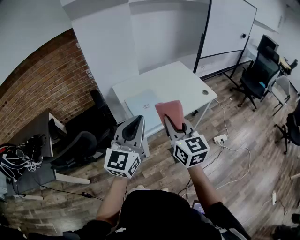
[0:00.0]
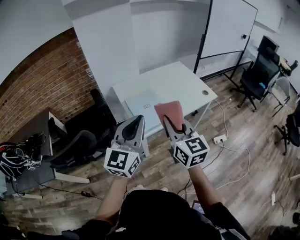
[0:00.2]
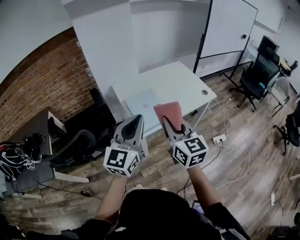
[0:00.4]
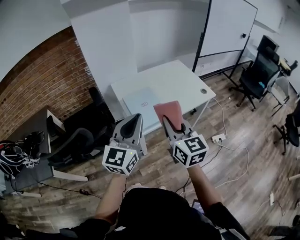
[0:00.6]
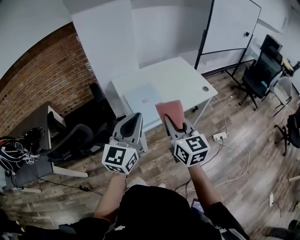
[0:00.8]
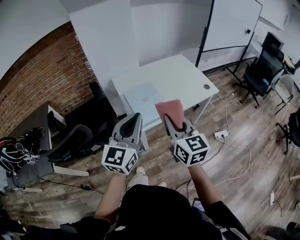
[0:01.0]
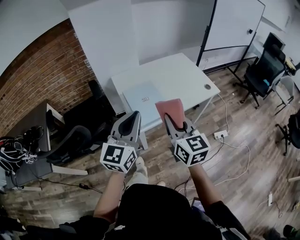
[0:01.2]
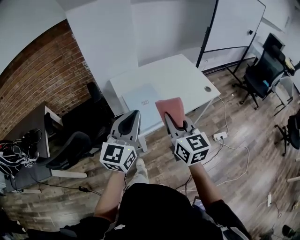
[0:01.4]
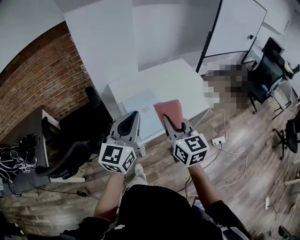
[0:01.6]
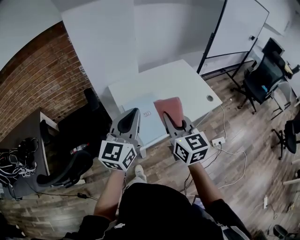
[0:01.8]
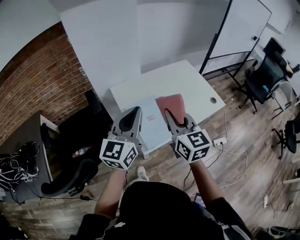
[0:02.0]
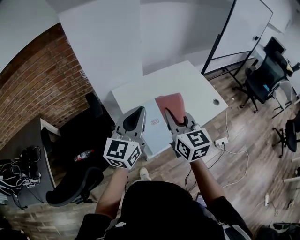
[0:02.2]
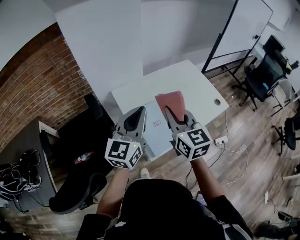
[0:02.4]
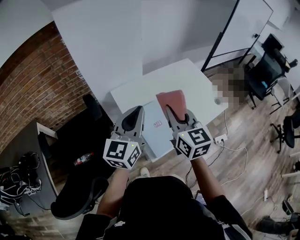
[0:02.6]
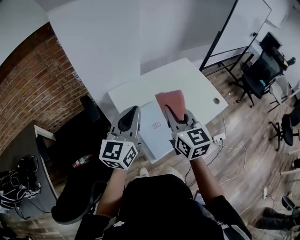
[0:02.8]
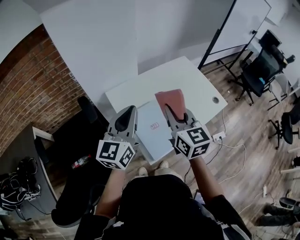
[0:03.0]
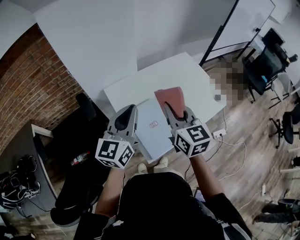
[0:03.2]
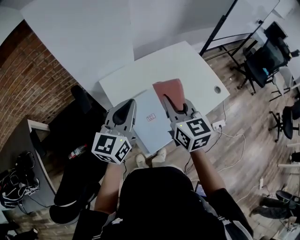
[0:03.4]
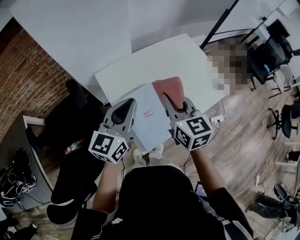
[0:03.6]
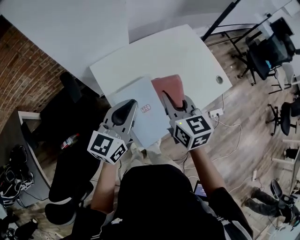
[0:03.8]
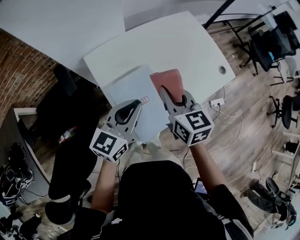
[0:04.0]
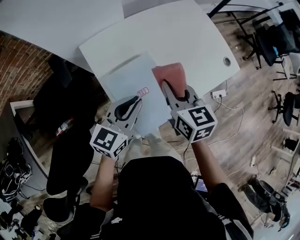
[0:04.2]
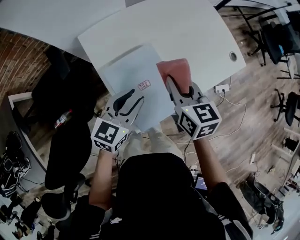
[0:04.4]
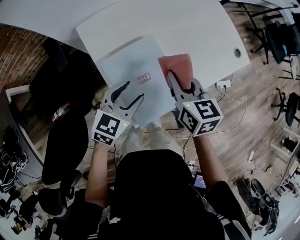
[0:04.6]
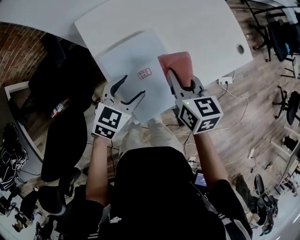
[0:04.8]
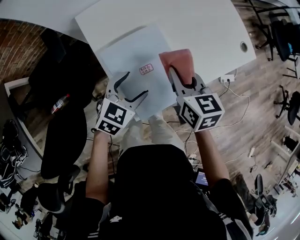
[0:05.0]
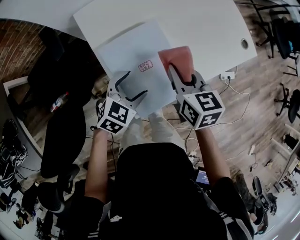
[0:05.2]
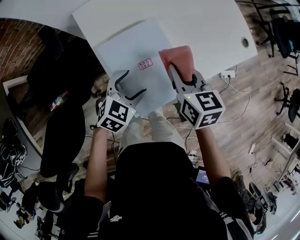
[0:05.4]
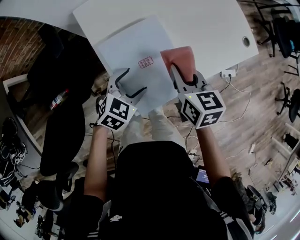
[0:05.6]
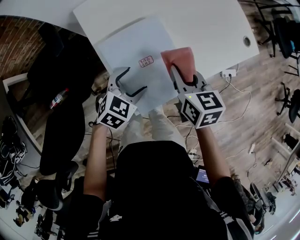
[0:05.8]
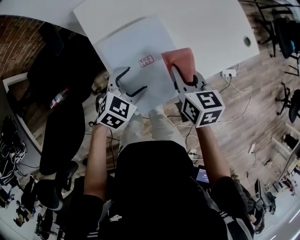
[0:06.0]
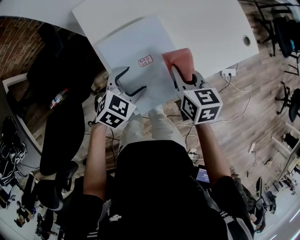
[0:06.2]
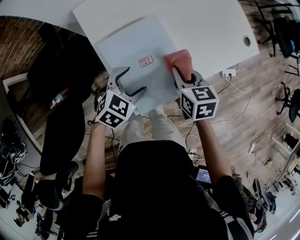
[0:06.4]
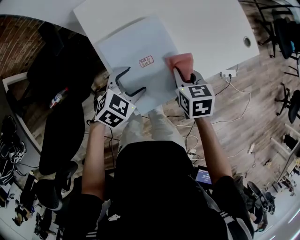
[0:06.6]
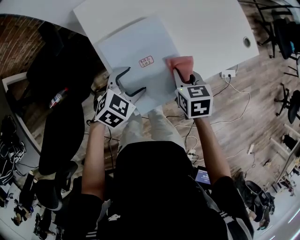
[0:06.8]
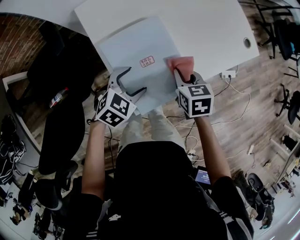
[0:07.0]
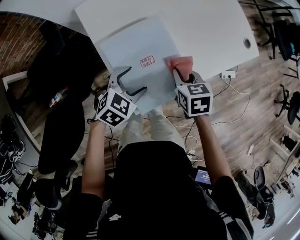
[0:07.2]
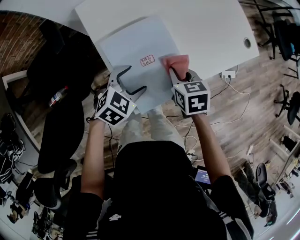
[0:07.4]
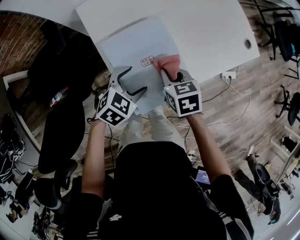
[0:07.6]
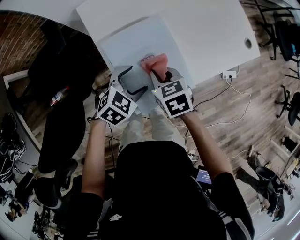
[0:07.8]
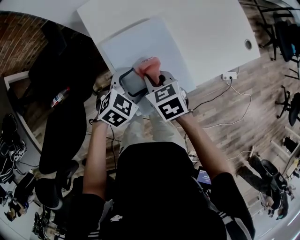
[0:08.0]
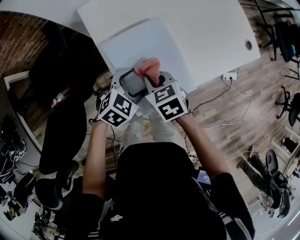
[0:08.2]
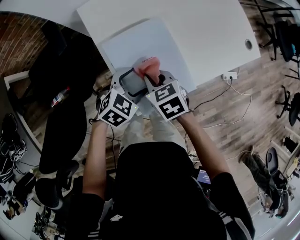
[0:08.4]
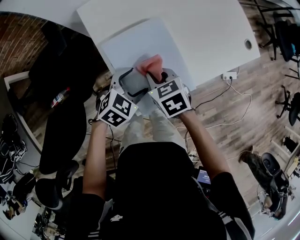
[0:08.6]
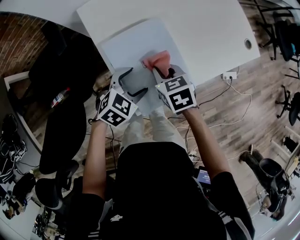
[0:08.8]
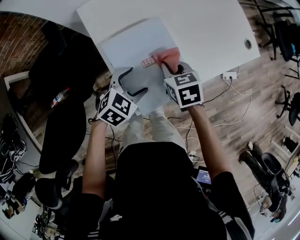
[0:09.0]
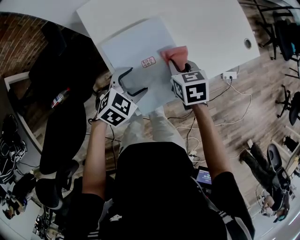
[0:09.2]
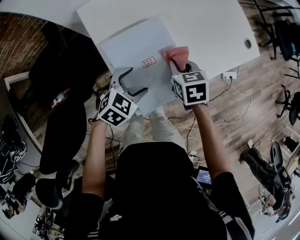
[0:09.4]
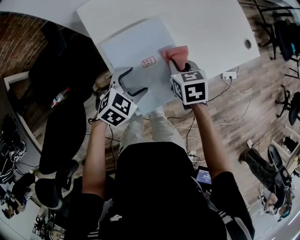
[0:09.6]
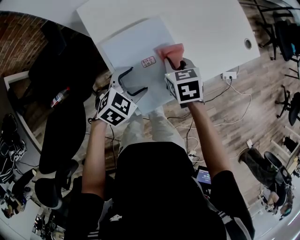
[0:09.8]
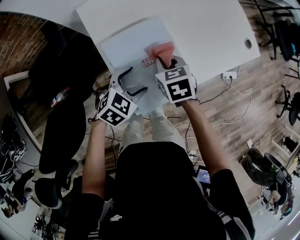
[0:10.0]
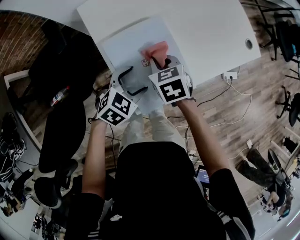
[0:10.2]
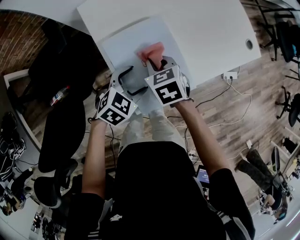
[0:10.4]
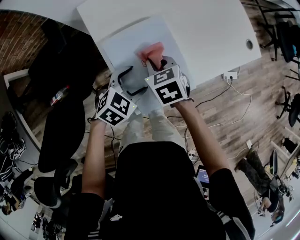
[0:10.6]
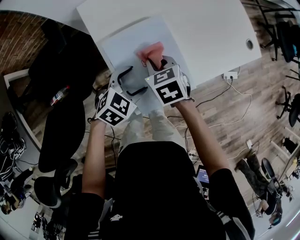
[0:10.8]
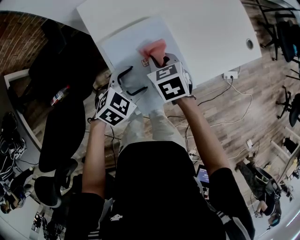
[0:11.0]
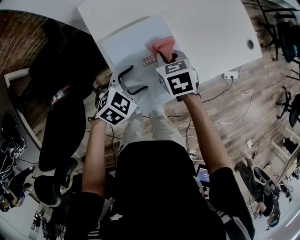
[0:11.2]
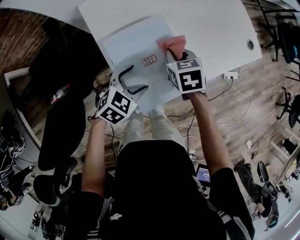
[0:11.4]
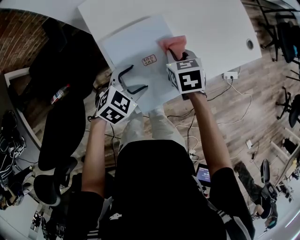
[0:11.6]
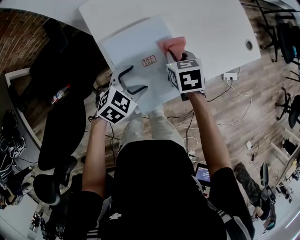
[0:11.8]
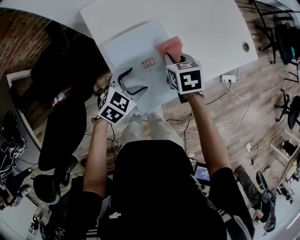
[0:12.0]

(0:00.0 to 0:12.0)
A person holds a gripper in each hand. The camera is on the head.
0:00.0 - 0:01.6: The grippers both shift forward by about 10 cm.
0:01.6 - 0:03.0: The right gripper goes about 20 cm forward; the left gripper moves forward and to the left, roughly 25 cm.
0:03.0 - 0:04.4: The two grippers go about 25 cm downward. The right gripper turns by approximately 20 degrees, while the left gripper turns by approximately 30 degrees, and opens its fingers.
0:04.4 - 0:06.0: The two grippers go approximately 10 cm downward. The left gripper changes its angle by roughly 30 degrees, and opens.
0:06.0 - 0:07.6: The right gripper shifts roughly 5 cm downward.
0:09.0 - 0:10.4: The right gripper goes about 5 cm to the left.
0:10.4 - 0:12.0: The right gripper heads to the right, covering about 5 cm.

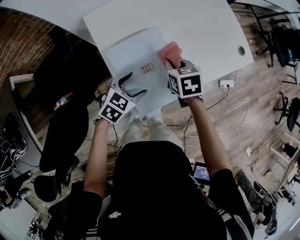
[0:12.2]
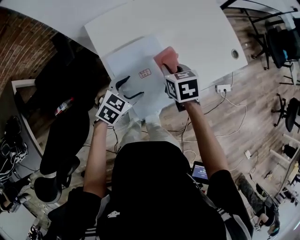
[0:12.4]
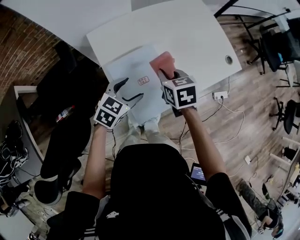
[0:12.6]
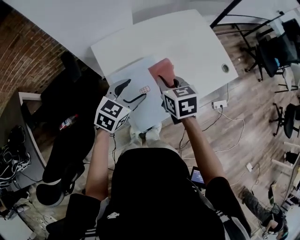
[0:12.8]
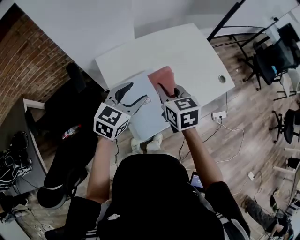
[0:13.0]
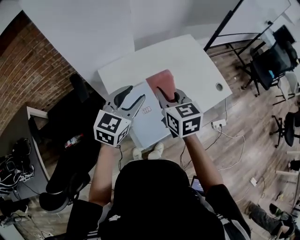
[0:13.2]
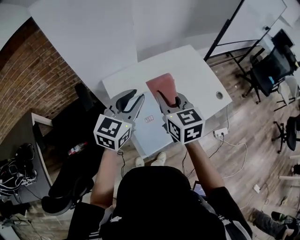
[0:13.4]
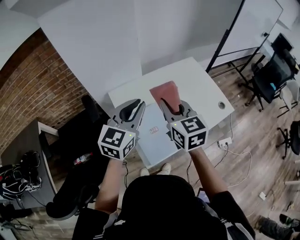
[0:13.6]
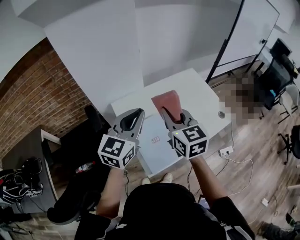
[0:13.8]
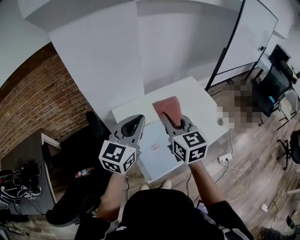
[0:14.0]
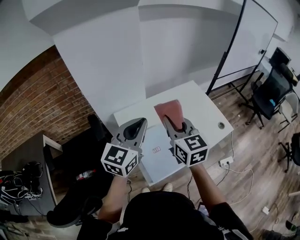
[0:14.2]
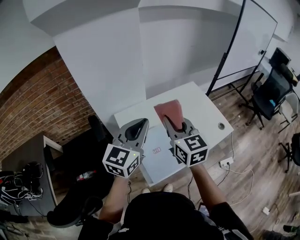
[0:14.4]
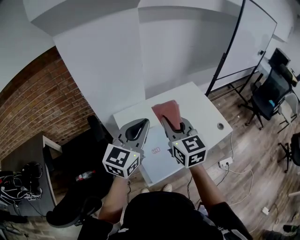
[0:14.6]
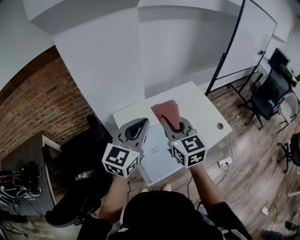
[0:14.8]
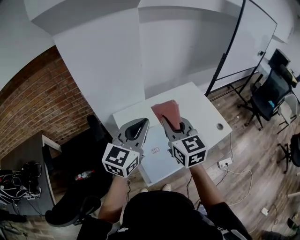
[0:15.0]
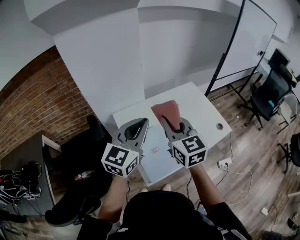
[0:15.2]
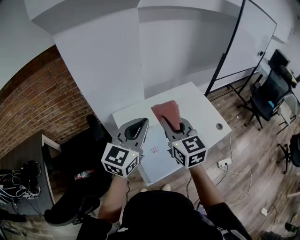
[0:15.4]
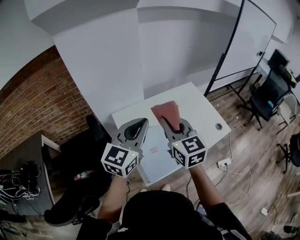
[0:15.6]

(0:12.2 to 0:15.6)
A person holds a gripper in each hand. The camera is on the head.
0:12.2 - 0:13.8: Both grippers move upward, some 35 cm. The right gripper tilts its fingers approximately 40 degrees upward; the left gripper tips its fingers upward by about 40 degrees, and closes up.
0:13.8 - 0:15.6: There are only small adjustments of the grippers.

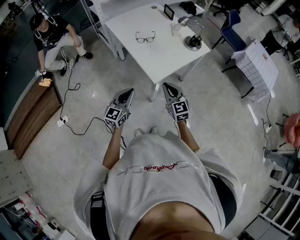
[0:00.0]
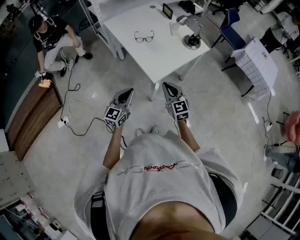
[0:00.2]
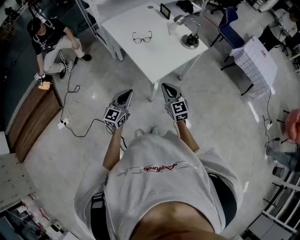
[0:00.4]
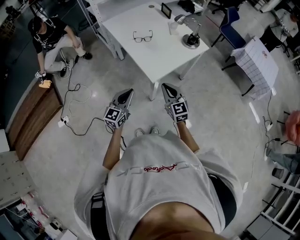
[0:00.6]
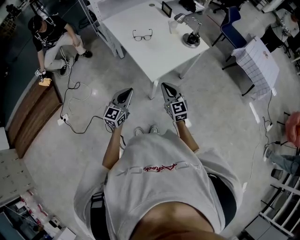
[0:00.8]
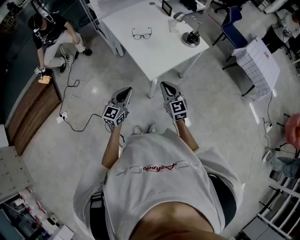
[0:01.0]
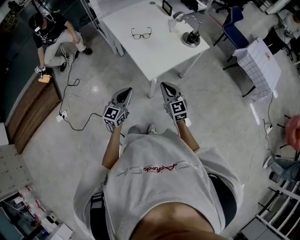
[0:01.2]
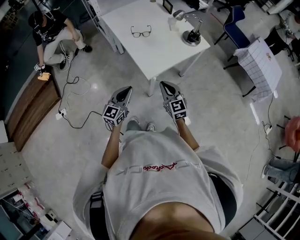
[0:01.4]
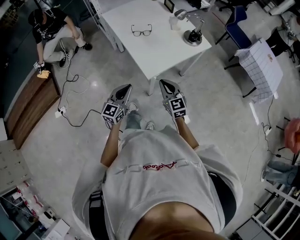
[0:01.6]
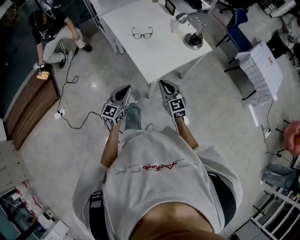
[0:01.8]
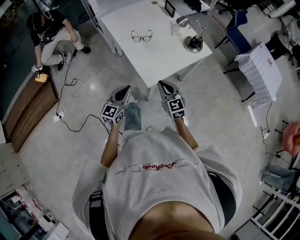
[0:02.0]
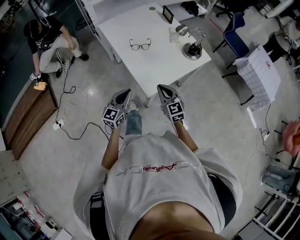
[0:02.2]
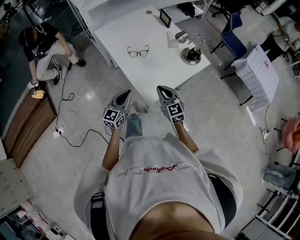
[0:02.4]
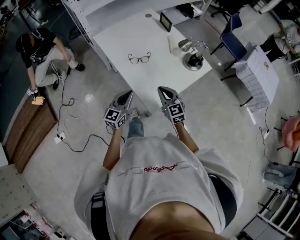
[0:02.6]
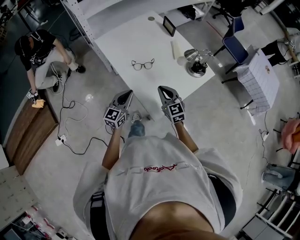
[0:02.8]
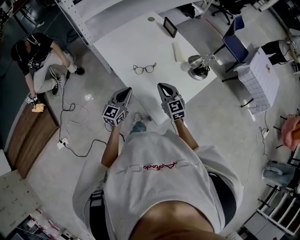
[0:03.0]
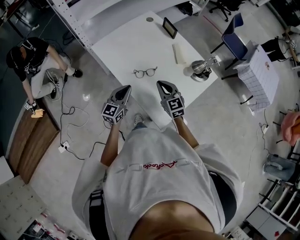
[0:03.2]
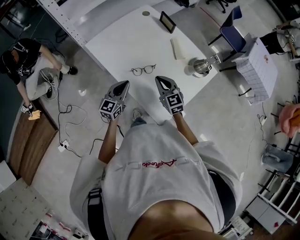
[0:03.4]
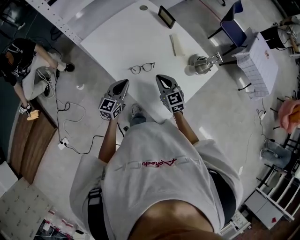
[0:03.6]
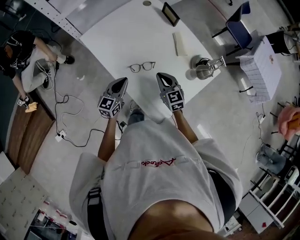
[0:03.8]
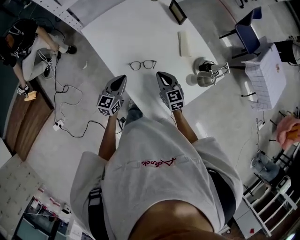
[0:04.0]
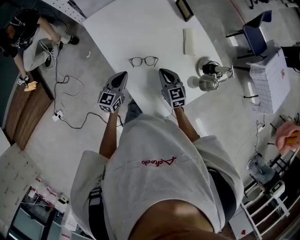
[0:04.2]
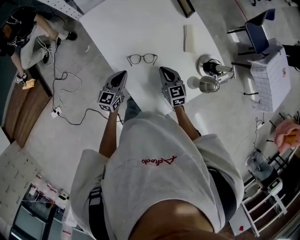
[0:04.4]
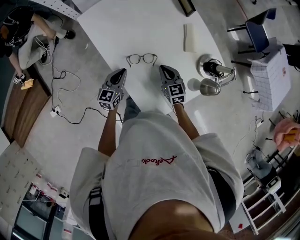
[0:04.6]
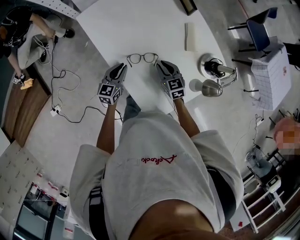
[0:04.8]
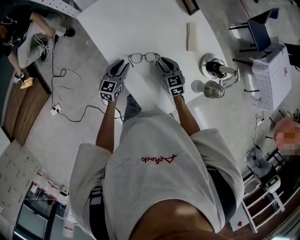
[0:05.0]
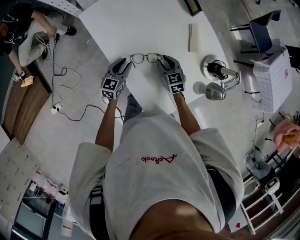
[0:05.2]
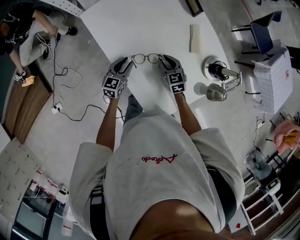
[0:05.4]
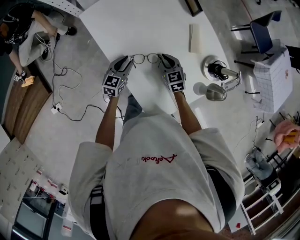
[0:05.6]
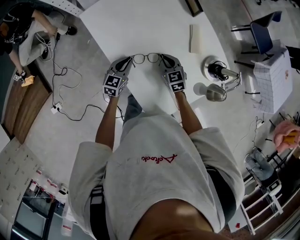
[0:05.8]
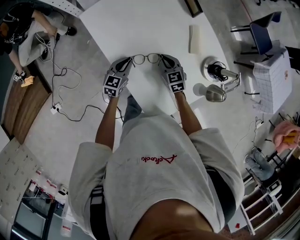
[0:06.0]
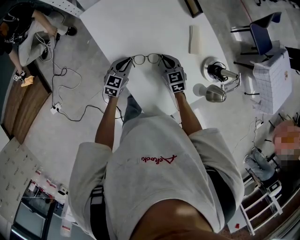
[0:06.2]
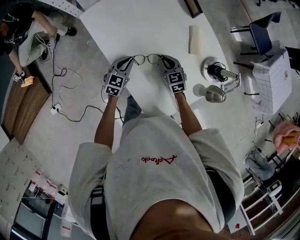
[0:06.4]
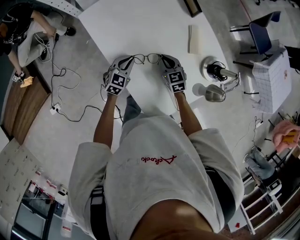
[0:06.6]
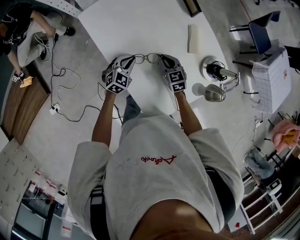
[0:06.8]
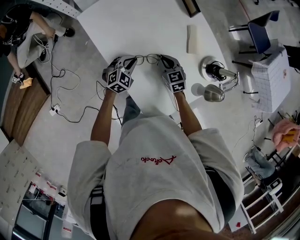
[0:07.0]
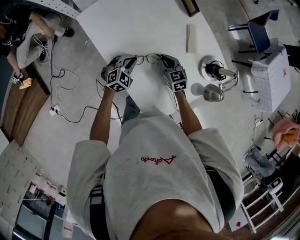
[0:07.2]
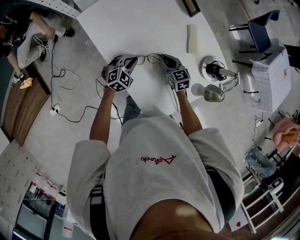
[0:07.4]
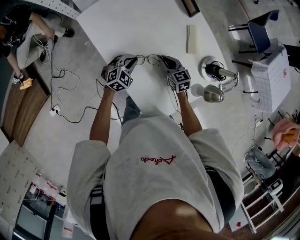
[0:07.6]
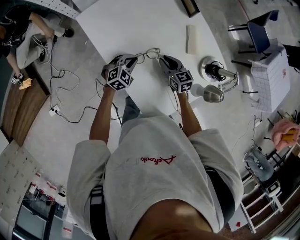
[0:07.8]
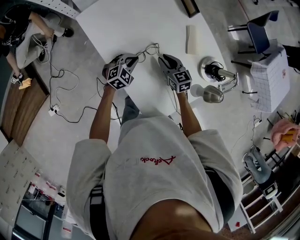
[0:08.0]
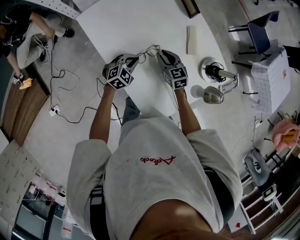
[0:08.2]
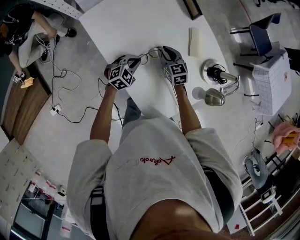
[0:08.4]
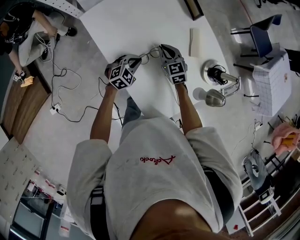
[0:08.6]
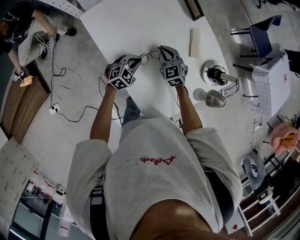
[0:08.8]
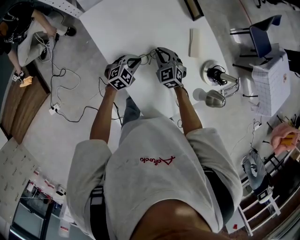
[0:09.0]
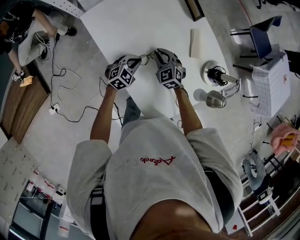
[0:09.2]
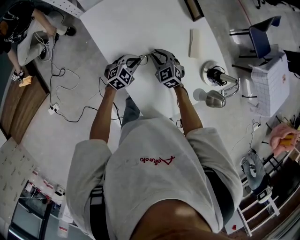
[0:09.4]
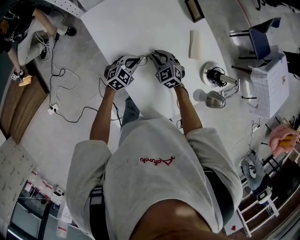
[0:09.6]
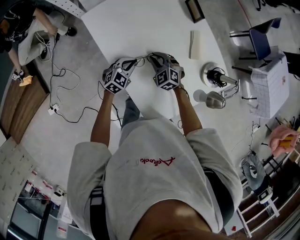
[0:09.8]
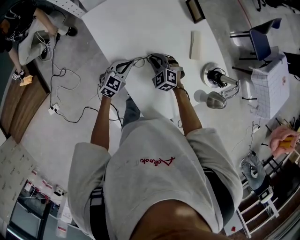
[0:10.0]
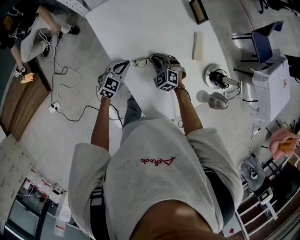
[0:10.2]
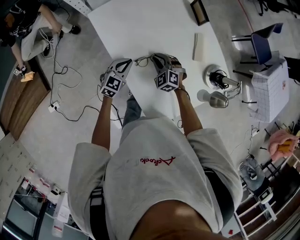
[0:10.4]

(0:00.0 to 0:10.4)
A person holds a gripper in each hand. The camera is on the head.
0:00.0 - 0:01.4: The grippers move only a little.
0:01.4 - 0:03.0: Both grippers move forward, about 30 cm.
0:03.0 - 0:04.4: Both grippers move downward and forward, some 15 cm.
0:04.4 - 0:06.0: The grippers both shift forward by some 5 cm.
0:06.0 - 0:07.4: The left gripper changes its angle by roughly 40 degrees.
0:07.4 - 0:09.0: The right gripper moves roughly 5 cm, and turns by some 30 degrees.
0:09.0 - 0:10.4: The right gripper moves about 5 cm, and rotates about 20 degrees. The left gripper is displaced to the left by approximately 5 cm, and changes its angle by about 20 degrees.
